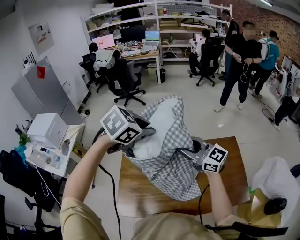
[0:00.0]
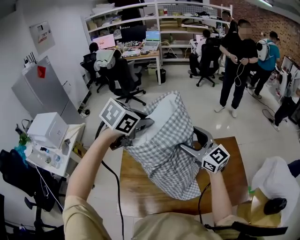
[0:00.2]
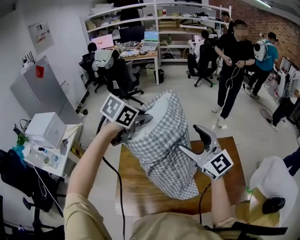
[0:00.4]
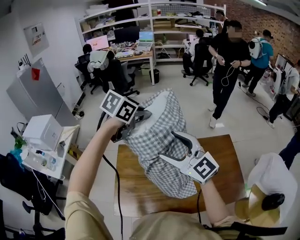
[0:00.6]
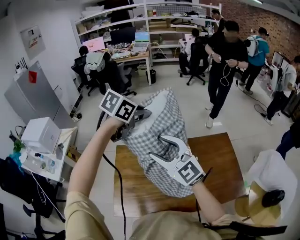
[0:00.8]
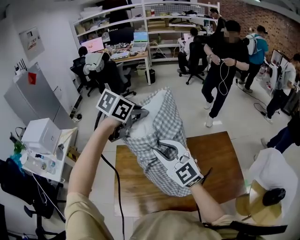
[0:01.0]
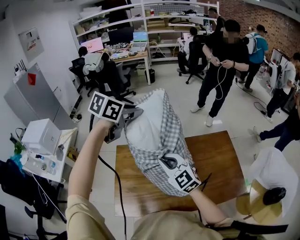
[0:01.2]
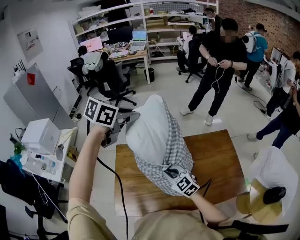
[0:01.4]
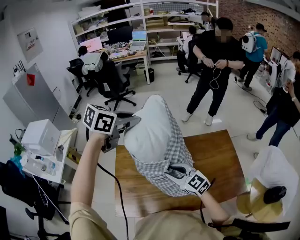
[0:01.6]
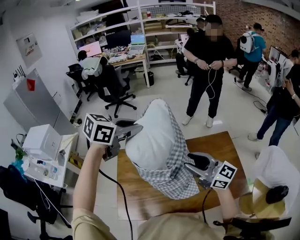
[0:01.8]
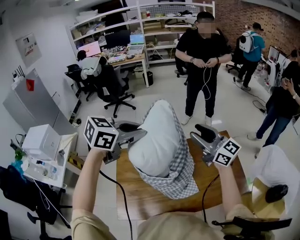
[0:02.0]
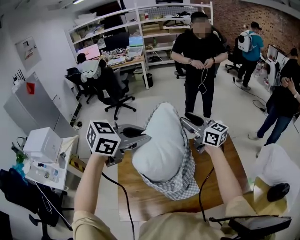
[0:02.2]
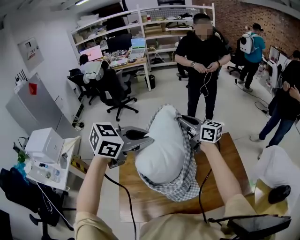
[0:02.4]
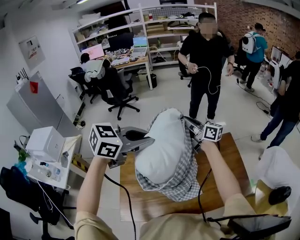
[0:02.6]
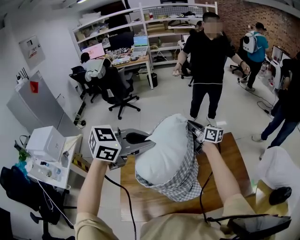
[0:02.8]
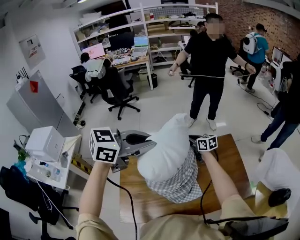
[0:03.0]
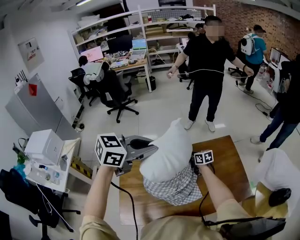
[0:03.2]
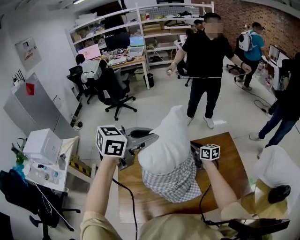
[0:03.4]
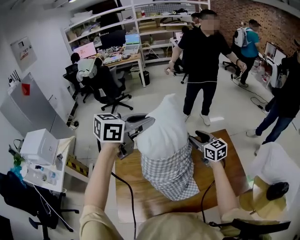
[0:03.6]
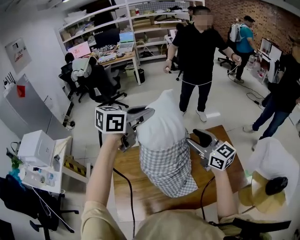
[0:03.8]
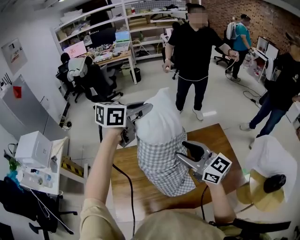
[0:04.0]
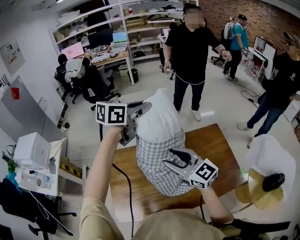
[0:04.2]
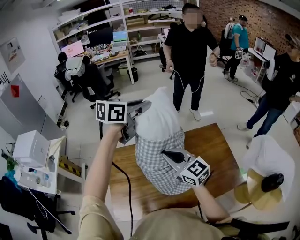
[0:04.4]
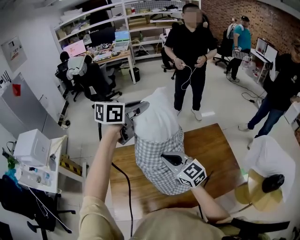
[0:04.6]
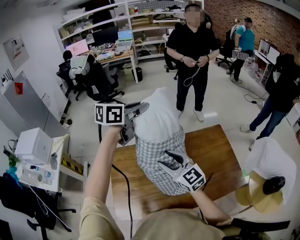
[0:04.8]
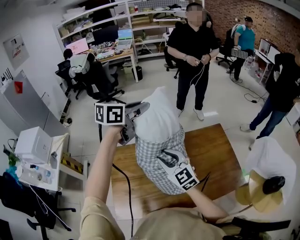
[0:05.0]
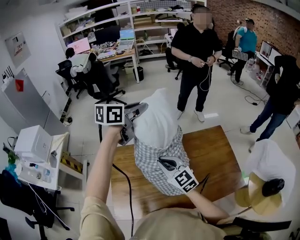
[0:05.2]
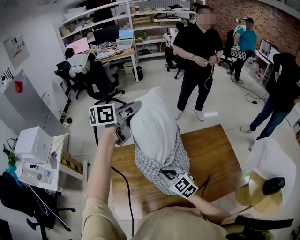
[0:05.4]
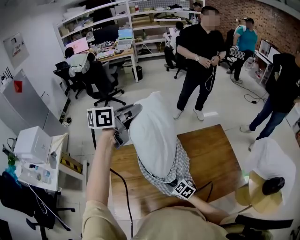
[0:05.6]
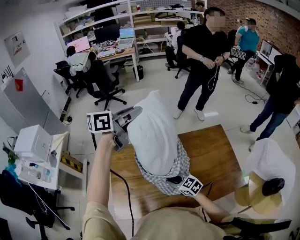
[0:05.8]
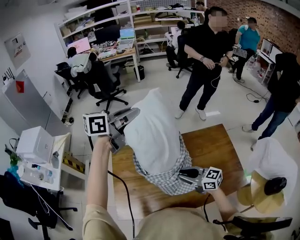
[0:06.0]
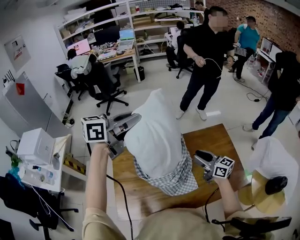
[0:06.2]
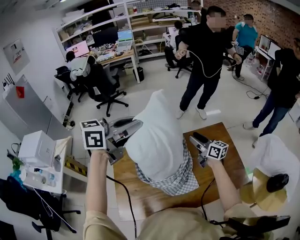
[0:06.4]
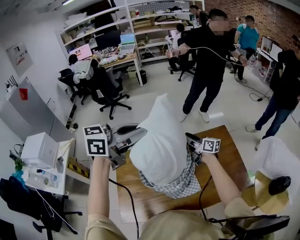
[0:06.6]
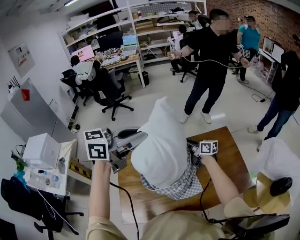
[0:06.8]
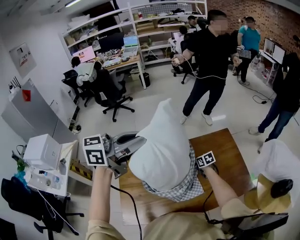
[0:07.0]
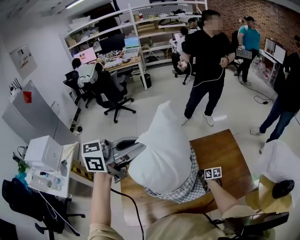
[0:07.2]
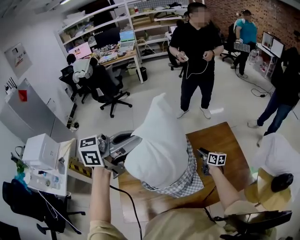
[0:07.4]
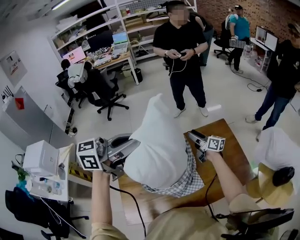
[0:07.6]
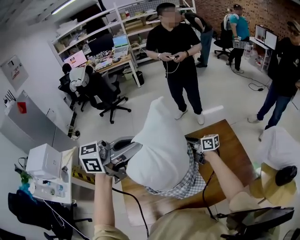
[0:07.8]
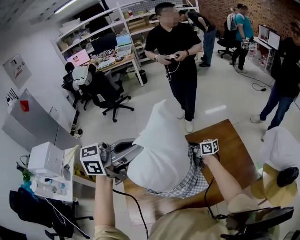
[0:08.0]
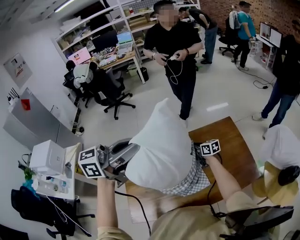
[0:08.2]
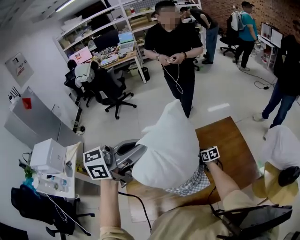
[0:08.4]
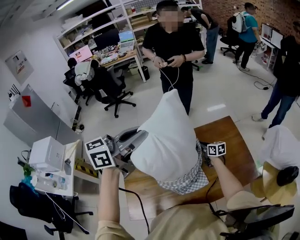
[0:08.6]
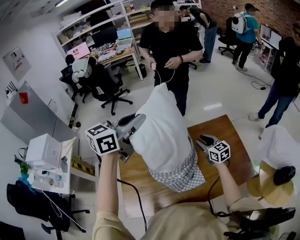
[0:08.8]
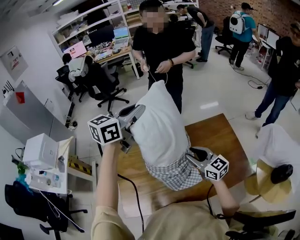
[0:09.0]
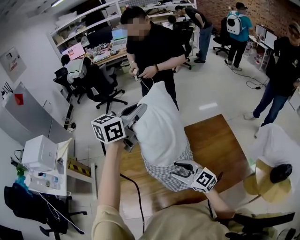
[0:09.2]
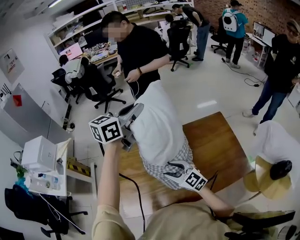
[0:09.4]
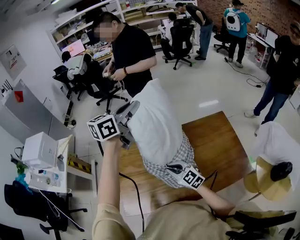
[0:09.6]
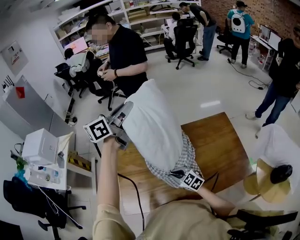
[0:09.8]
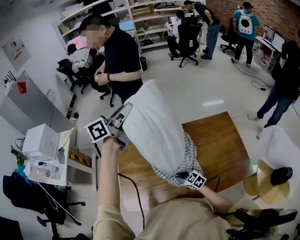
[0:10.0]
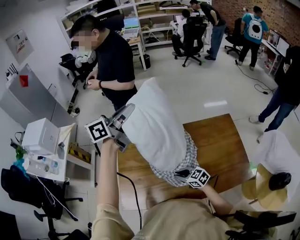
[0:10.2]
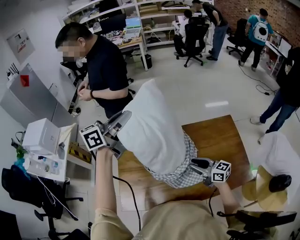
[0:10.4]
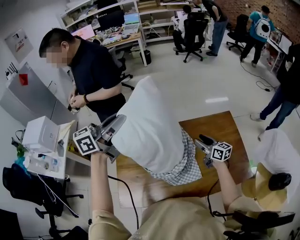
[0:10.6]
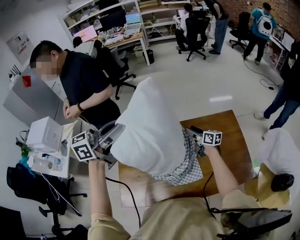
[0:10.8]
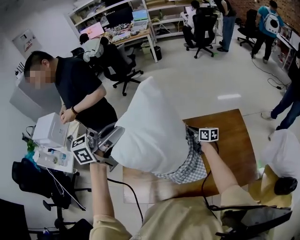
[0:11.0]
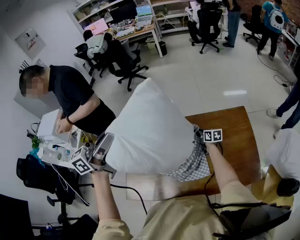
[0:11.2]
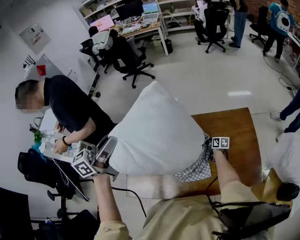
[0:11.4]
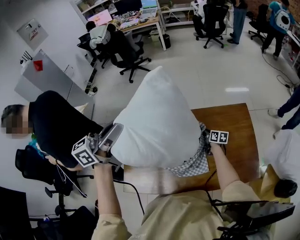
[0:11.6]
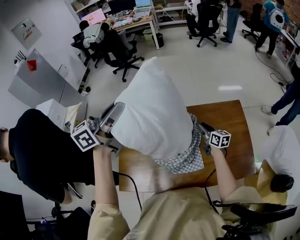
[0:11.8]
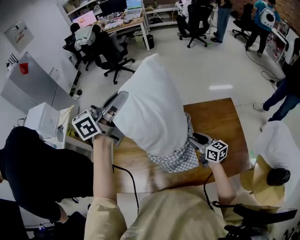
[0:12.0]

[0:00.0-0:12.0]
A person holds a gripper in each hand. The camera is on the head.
0.0 to 1.6 s: The right gripper goes up and down, some 30 cm each way, reversing 2 times, swivels approximately 20 degrees, and opens, then closes again. Meanwhile the left gripper shifts approximately 10 cm upward and forward, and changes its angle by roughly 30 degrees.
1.6 to 3.0 s: The left gripper travels backward and to the right by some 15 cm, and changes its angle by some 20 degrees, while the right gripper goes about 30 cm forward and downward, and changes its angle by about 40 degrees.
3.0 to 4.4 s: The left gripper shifts about 15 cm forward, and rotates approximately 20 degrees; the right gripper swings up and down, some 35 cm each way, with 2 reversals, rotates some 30 degrees, and opens, then closes once more.
4.4 to 6.0 s: The left gripper changes place by approximately 5 cm; the right gripper travels downward by some 15 cm, and swivels about 30 degrees.
6.0 to 7.6 s: The right gripper moves up and down over some 35 cm, changing direction 2 times, changes its angle by some 40 degrees, and opens. The left gripper shifts by roughly 10 cm.
7.6 to 9.0 s: The right gripper reaches some 20 cm downward, then returns, and rotates about 40 degrees, while the left gripper moves about 15 cm, and rotates some 30 degrees.
9.0 to 10.4 s: The left gripper heads to the left, covering some 10 cm, and changes its angle by about 20 degrees. Meanwhile the right gripper goes roughly 10 cm downward, and swivels about 20 degrees.
10.4 to 12.0 s: The right gripper is displaced forward and to the right by some 15 cm; the left gripper shifts approximately 15 cm to the right and upward.

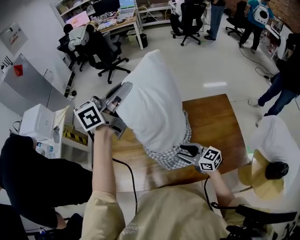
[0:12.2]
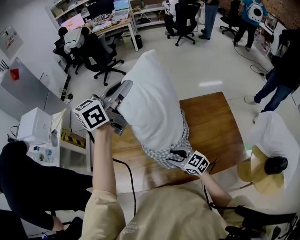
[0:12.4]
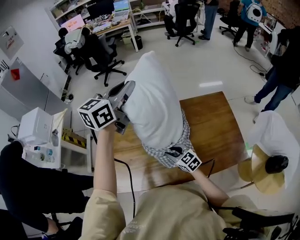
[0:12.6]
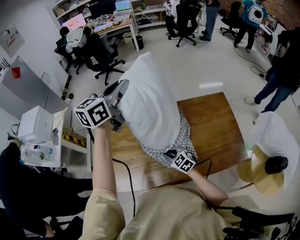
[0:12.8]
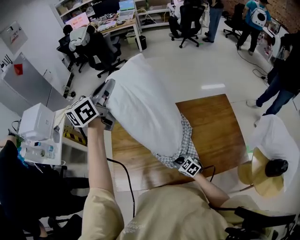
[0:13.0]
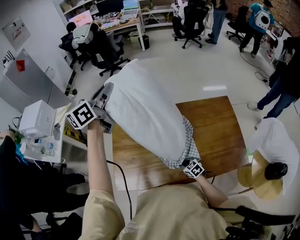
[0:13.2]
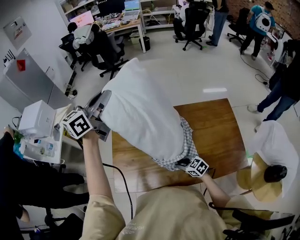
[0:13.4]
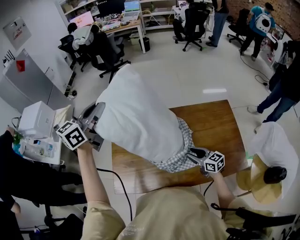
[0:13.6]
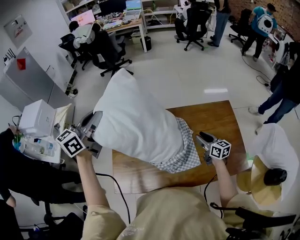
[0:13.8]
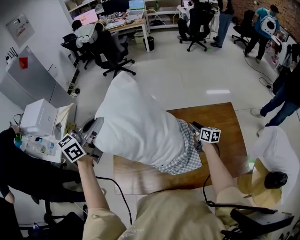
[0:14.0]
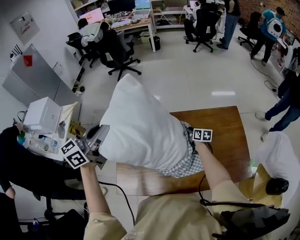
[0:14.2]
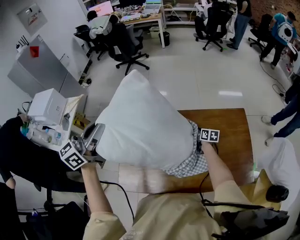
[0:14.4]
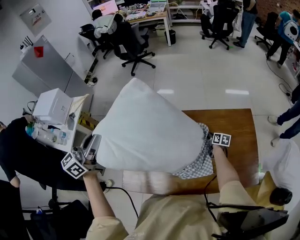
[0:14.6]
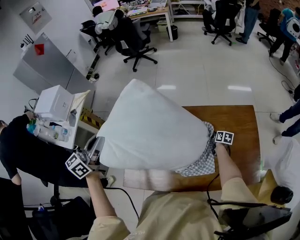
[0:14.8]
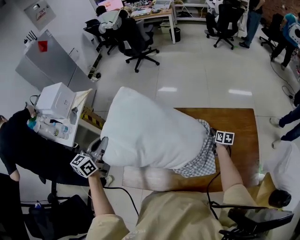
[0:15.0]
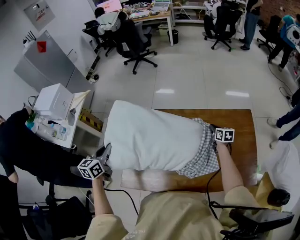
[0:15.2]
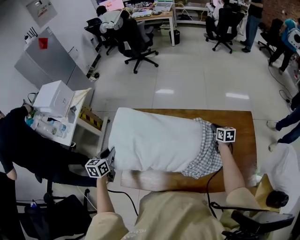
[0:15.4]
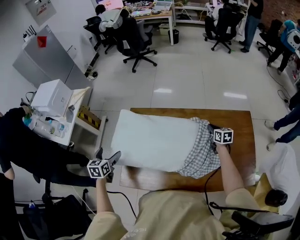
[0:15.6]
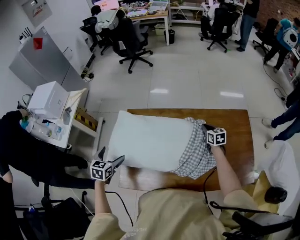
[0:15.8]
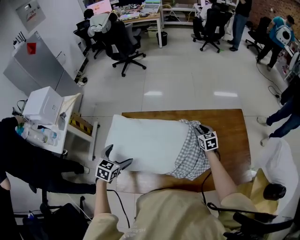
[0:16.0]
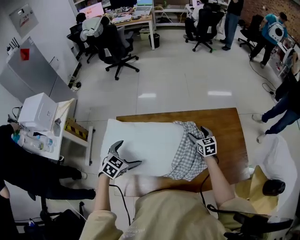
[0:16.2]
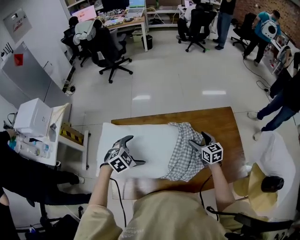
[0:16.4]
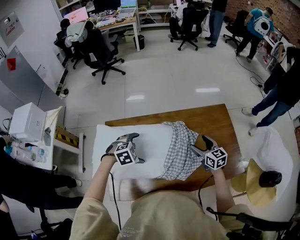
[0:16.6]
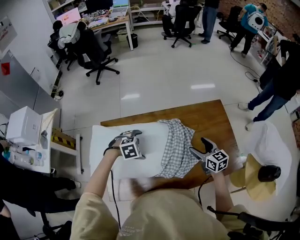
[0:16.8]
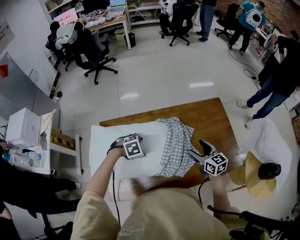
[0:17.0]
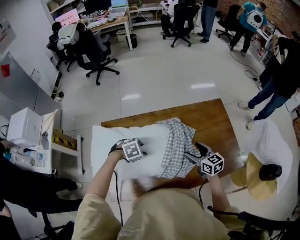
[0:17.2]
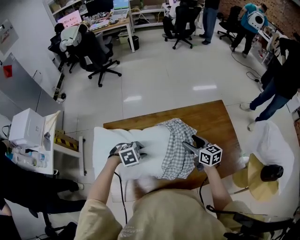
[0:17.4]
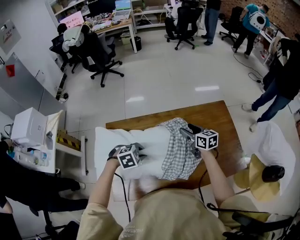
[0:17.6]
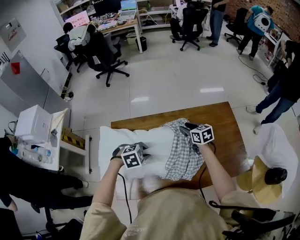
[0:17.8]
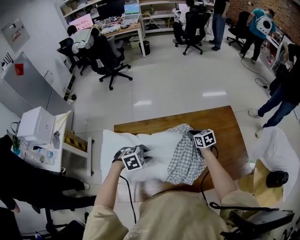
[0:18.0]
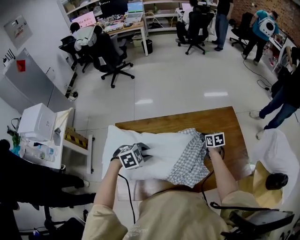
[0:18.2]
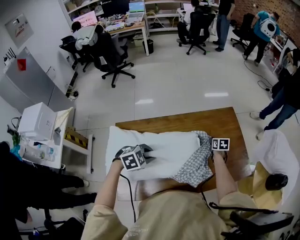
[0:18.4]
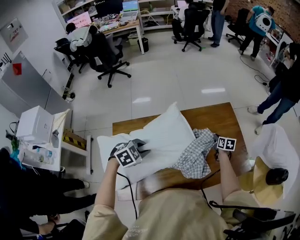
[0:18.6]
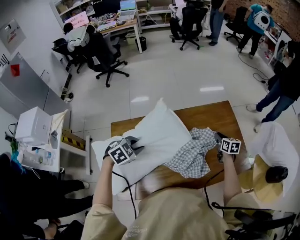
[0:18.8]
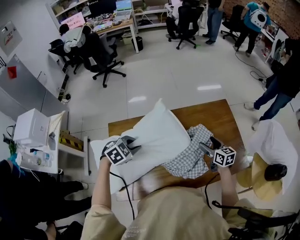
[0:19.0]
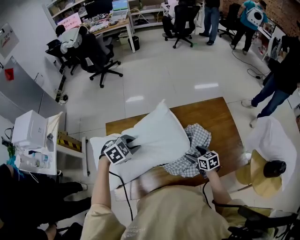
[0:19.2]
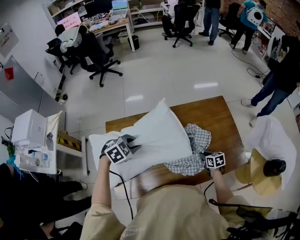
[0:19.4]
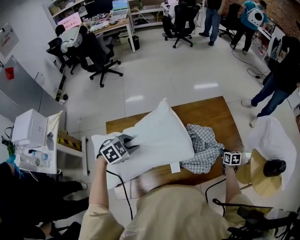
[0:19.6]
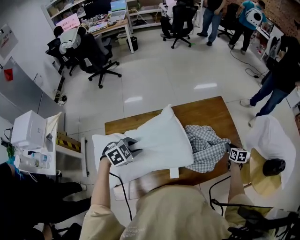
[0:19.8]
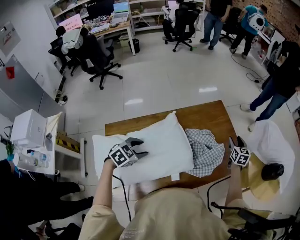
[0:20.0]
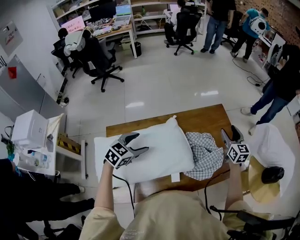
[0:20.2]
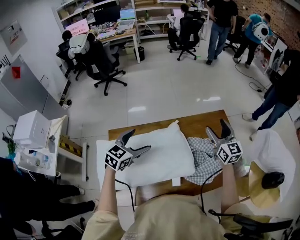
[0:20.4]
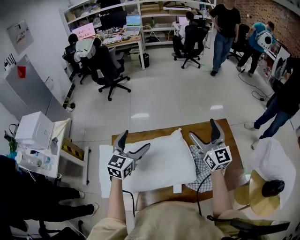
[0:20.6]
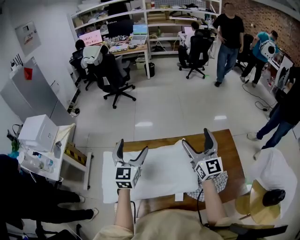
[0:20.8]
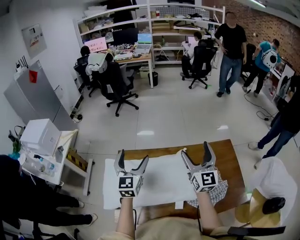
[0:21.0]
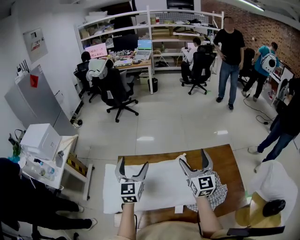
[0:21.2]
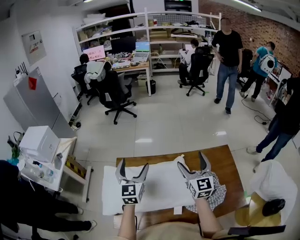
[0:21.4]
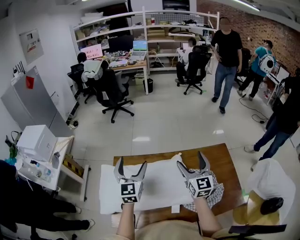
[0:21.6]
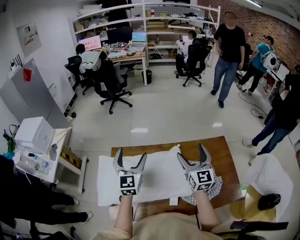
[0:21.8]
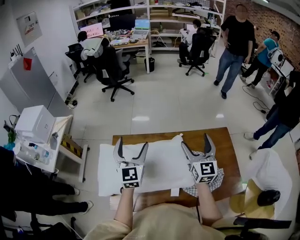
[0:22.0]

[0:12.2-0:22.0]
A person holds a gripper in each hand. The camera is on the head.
12.2 to 13.6 s: The right gripper goes downward and returns, some 30 cm each way, while the left gripper goes roughly 15 cm to the left, and swivels approximately 20 degrees.
13.6 to 15.0 s: The left gripper travels downward by about 20 cm, and swivels approximately 20 degrees. Meanwhile the right gripper goes about 30 cm forward, downward and to the right, and swivels approximately 40 degrees.
15.0 to 16.4 s: The right gripper shifts some 25 cm upward, to the left and backward, turns by approximately 30 degrees, and opens. Meanwhile the left gripper travels downward and to the right by roughly 20 cm, tips its fingers downward by roughly 40 degrees, and opens its fingers.
16.4 to 17.8 s: The left gripper is displaced to the right by some 5 cm, reaches roughly 10 cm downward, then returns, changes its angle by roughly 20 degrees, and closes up, while the right gripper travels to the left by about 5 cm, and reaches some 10 cm backward, then returns.
17.8 to 19.2 s: The right gripper heads downward, backward and to the right, covering about 15 cm, while the left gripper travels upward by some 5 cm.
19.2 to 20.6 s: The left gripper goes roughly 15 cm upward, tips its fingers upward by approximately 50 degrees, and opens up; the right gripper is displaced upward by some 35 cm, angles its fingers upward, by approximately 50 degrees, and closes and opens again.
20.6 to 22.0 s: The left gripper changes its angle by roughly 30 degrees.

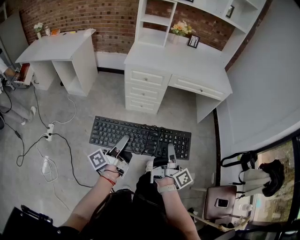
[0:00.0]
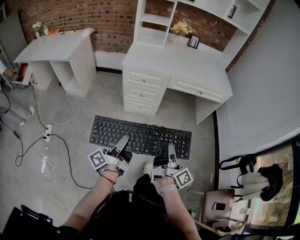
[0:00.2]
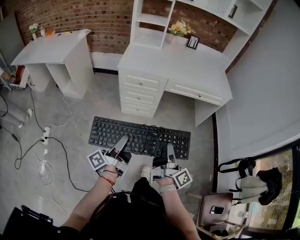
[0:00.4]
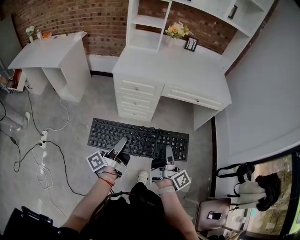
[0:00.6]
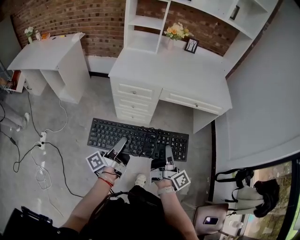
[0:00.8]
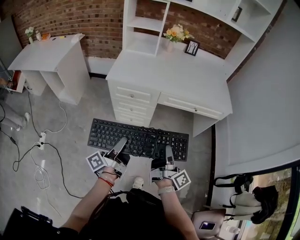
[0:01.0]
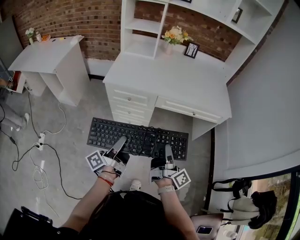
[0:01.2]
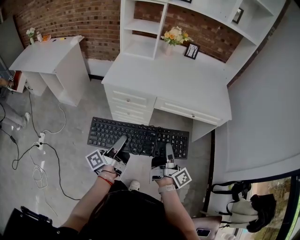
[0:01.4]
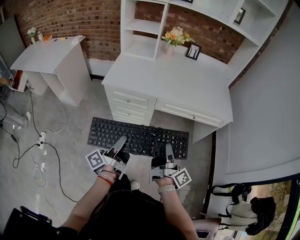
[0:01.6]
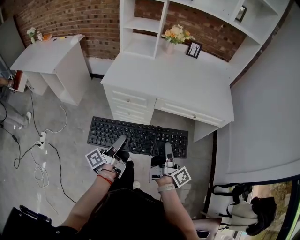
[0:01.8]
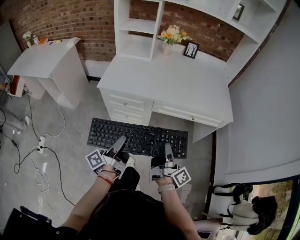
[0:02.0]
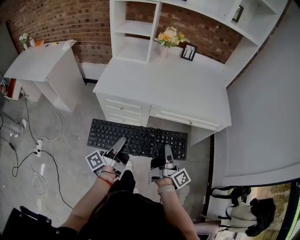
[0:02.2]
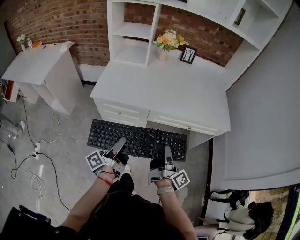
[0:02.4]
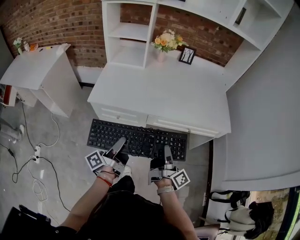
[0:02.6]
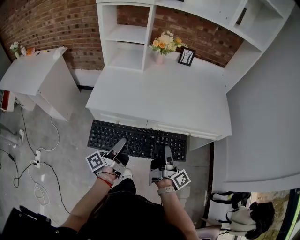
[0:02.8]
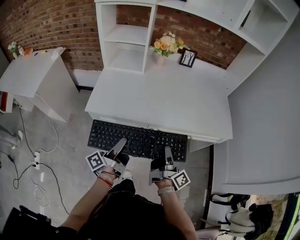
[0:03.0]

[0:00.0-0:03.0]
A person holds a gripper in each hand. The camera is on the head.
0.0 to 1.6 s: The left gripper moves approximately 25 cm.
1.6 to 3.0 s: The left gripper shifts by some 20 cm.
